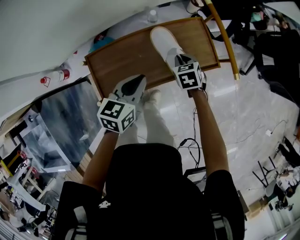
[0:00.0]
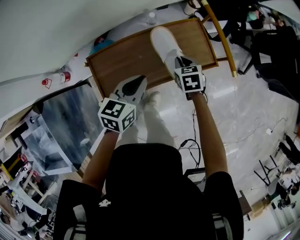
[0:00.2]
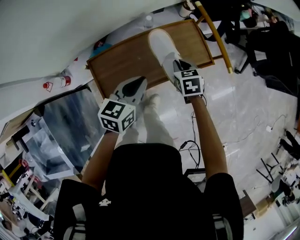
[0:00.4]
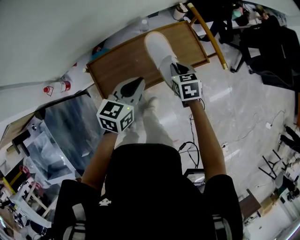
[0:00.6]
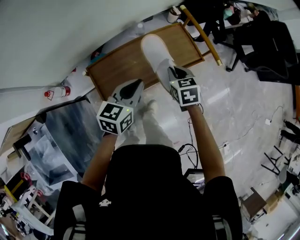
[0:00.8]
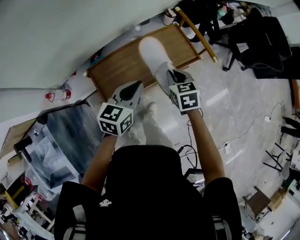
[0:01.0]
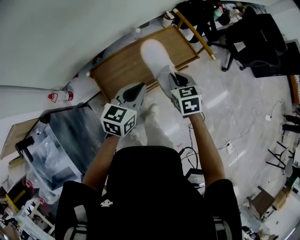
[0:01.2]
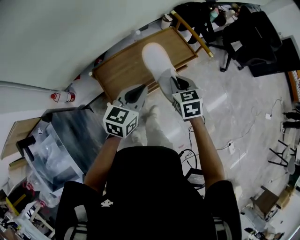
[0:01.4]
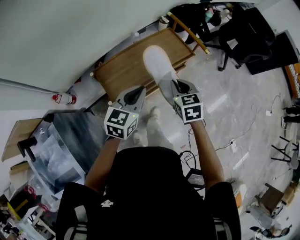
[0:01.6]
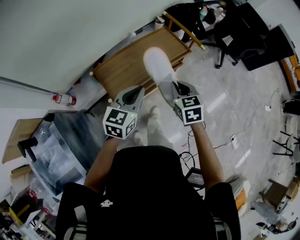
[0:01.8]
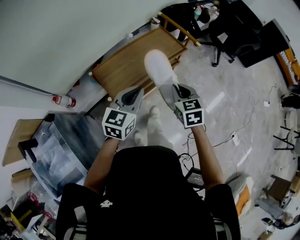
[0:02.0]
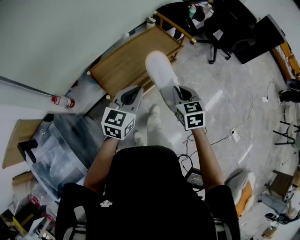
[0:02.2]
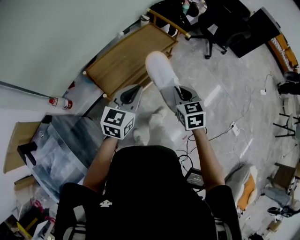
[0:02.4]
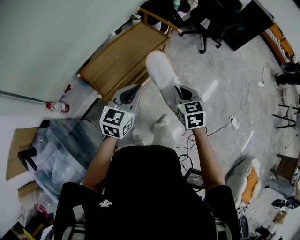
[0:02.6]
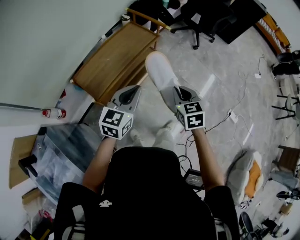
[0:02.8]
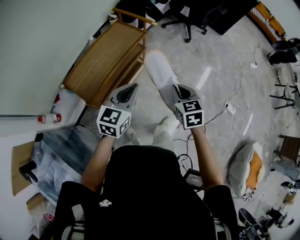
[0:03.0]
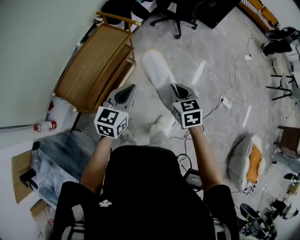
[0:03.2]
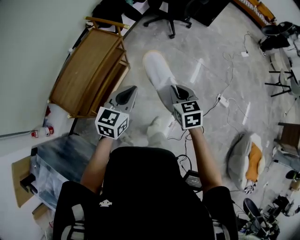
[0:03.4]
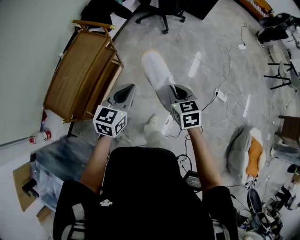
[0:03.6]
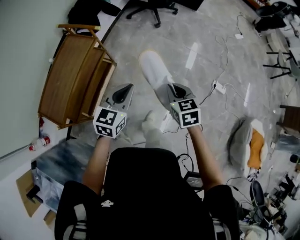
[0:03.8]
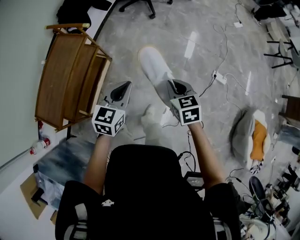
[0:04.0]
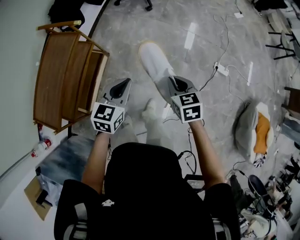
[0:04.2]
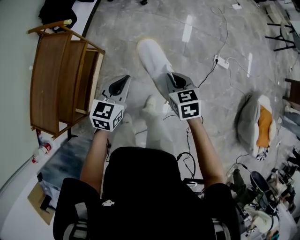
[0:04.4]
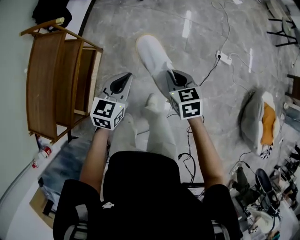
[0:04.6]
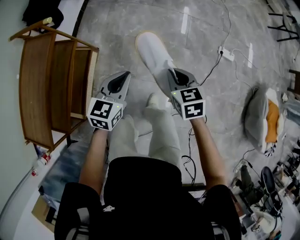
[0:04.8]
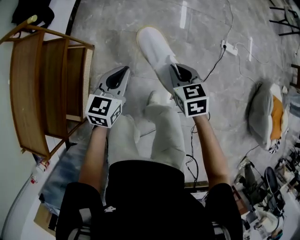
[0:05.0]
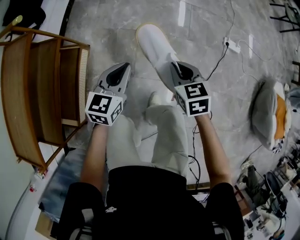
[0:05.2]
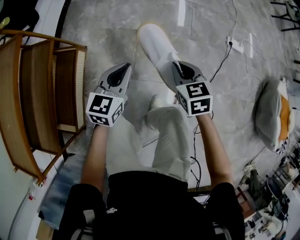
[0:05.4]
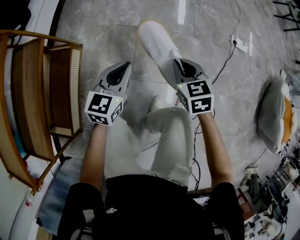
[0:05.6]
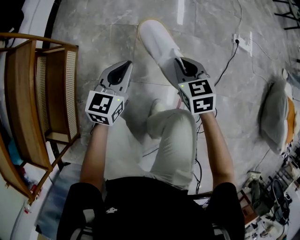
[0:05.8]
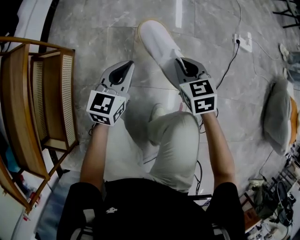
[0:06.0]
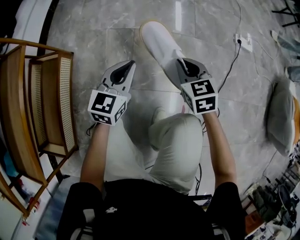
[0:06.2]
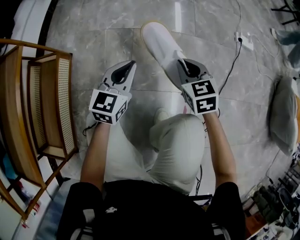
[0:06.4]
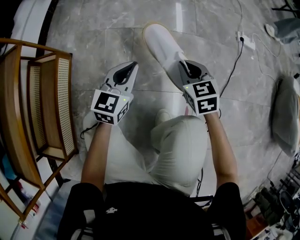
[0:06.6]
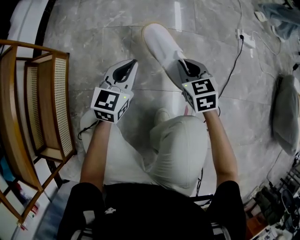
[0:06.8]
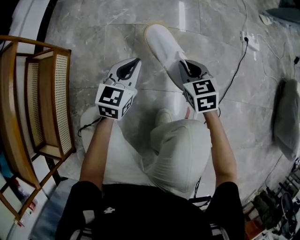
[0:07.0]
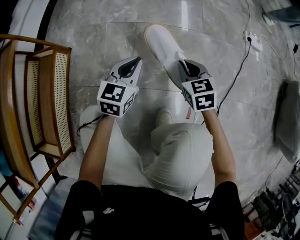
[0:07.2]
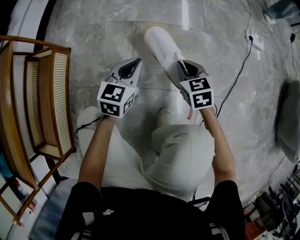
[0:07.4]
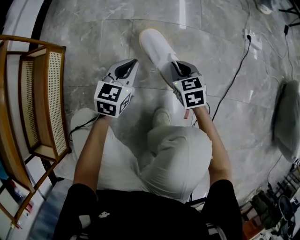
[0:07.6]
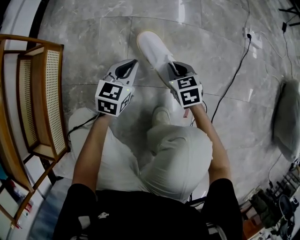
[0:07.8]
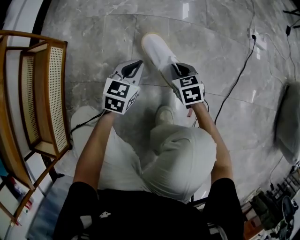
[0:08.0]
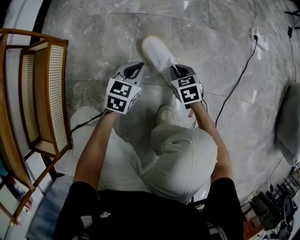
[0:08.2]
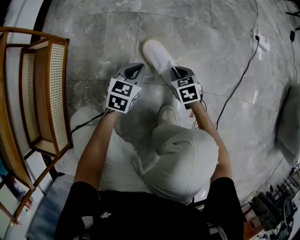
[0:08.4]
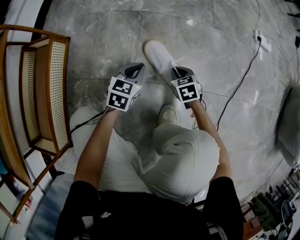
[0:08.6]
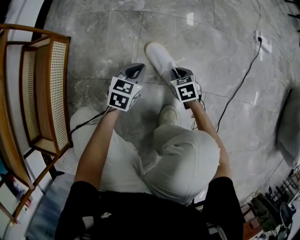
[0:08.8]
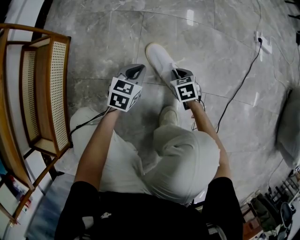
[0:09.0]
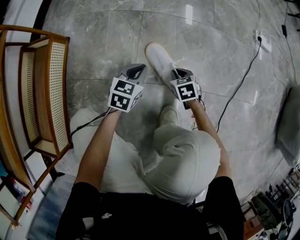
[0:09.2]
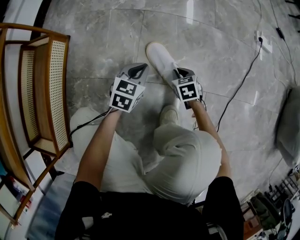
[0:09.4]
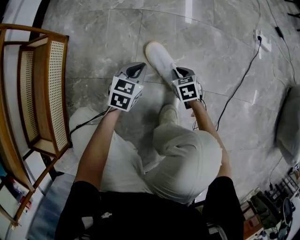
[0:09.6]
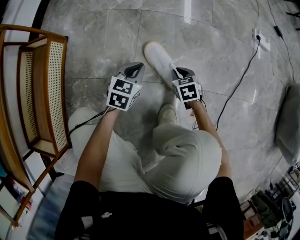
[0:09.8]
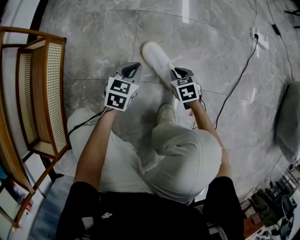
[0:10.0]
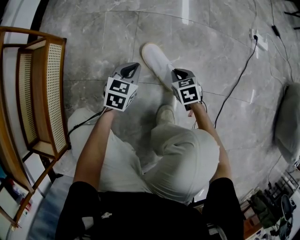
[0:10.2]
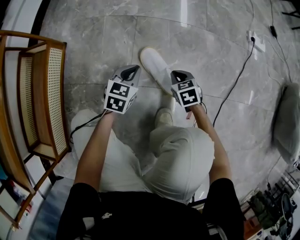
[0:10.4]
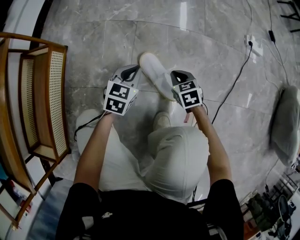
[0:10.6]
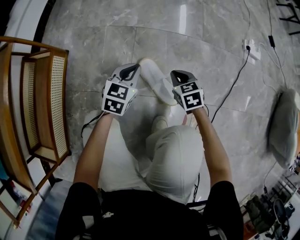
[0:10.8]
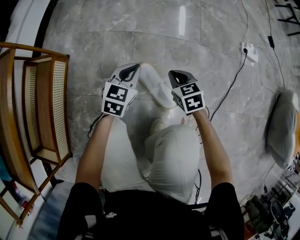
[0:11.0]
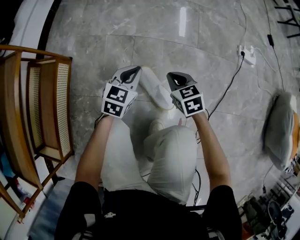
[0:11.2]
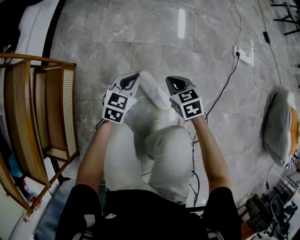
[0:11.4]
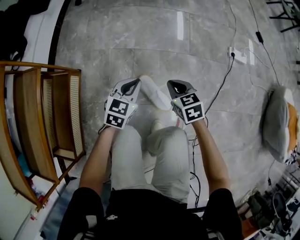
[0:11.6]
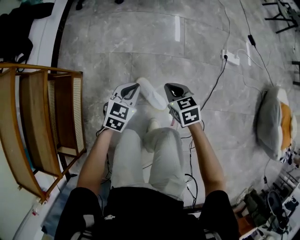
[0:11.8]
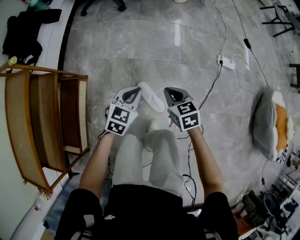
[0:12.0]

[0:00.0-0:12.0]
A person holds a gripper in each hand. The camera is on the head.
0:00.0 to 0:01.6: The grippers both shift backward and upward by approximately 25 cm. The left gripper rotates roughly 20 degrees, while the right gripper changes its angle by approximately 30 degrees.
0:01.6 to 0:03.0: Both grippers travel together to the right and backward, approximately 25 cm. The left gripper swivels roughly 20 degrees. Meanwhile the right gripper swivels approximately 20 degrees.
0:03.0 to 0:04.4: The right gripper is displaced to the right and downward by approximately 30 cm, and changes its angle by roughly 20 degrees; the left gripper moves to the right, downward and forward, some 35 cm, and rotates about 20 degrees.
0:04.4 to 0:06.0: Both grippers travel together downward, roughly 40 cm.
0:06.0 to 0:07.6: The two grippers go roughly 20 cm downward.
0:07.6 to 0:09.0: Both grippers travel together downward, approximately 10 cm.
0:09.0 to 0:10.4: The grippers move only a little.
0:10.4 to 0:12.0: Both grippers move upward, about 40 cm.

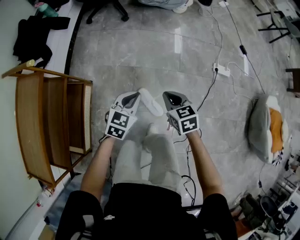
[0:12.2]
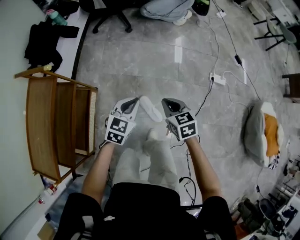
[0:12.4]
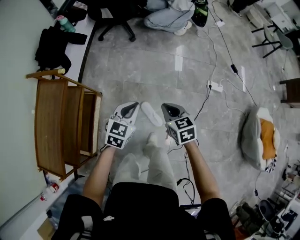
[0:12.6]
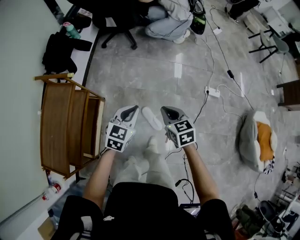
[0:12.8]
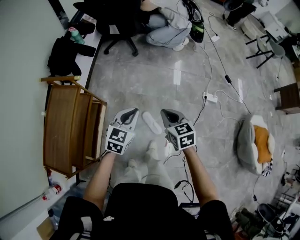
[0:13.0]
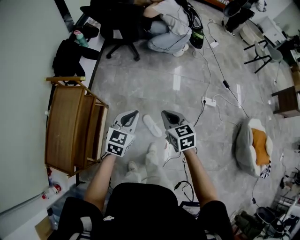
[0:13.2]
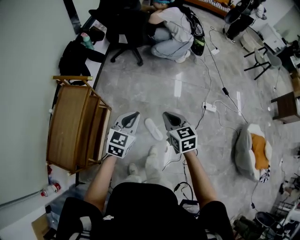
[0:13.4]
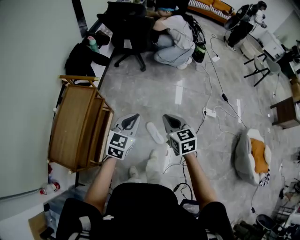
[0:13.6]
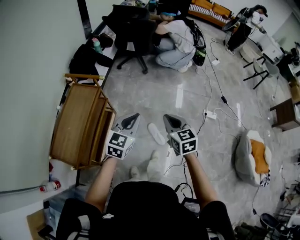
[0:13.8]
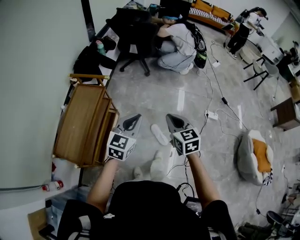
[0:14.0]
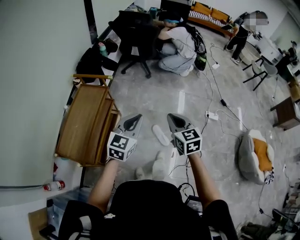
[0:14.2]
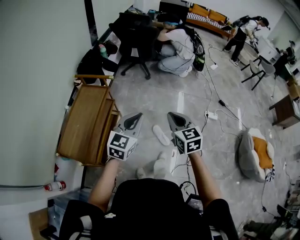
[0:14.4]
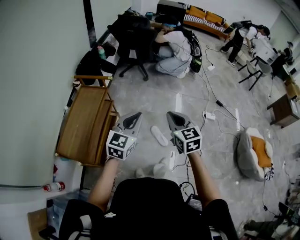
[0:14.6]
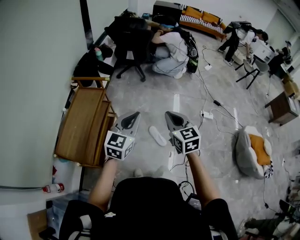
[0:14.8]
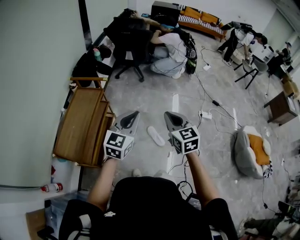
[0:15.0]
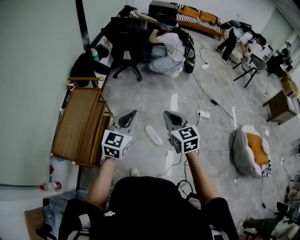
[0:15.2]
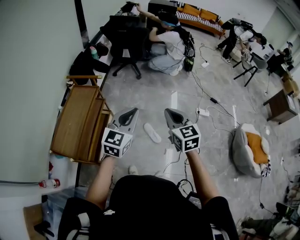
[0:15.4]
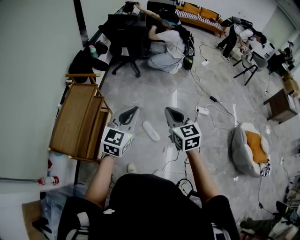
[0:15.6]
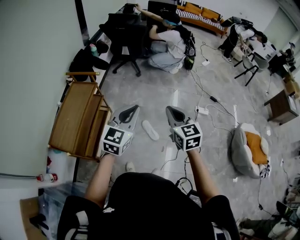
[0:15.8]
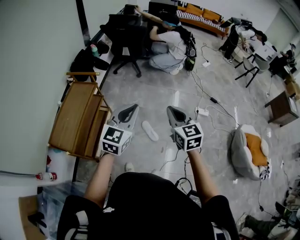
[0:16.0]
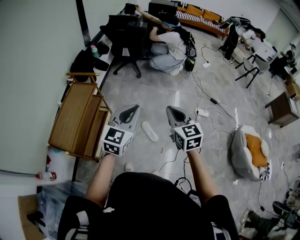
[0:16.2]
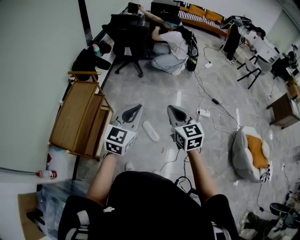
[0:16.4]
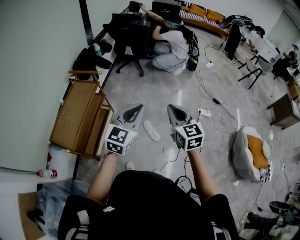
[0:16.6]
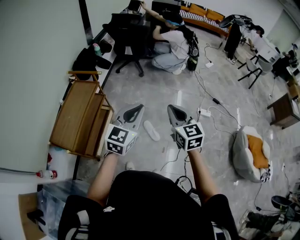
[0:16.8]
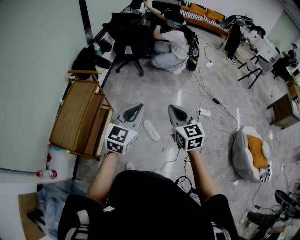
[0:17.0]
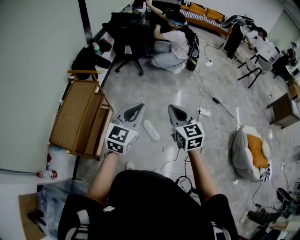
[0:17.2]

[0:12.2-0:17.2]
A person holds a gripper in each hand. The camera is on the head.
0:12.2 to 0:13.8: Both grippers travel together upward, roughly 40 cm. The left gripper turns by approximately 20 degrees.
0:13.8 to 0:15.6: The right gripper goes about 15 cm backward, upward and to the right, while the left gripper moves backward and upward, some 15 cm.
0:15.6 to 0:17.2: The grippers make only small movements.

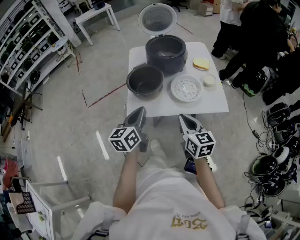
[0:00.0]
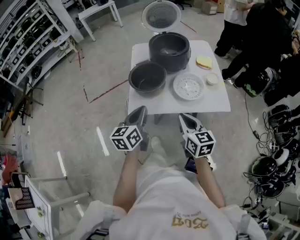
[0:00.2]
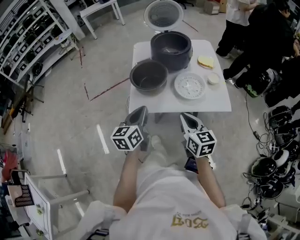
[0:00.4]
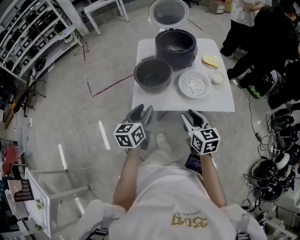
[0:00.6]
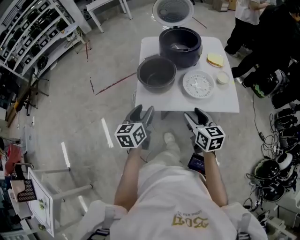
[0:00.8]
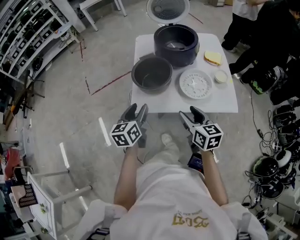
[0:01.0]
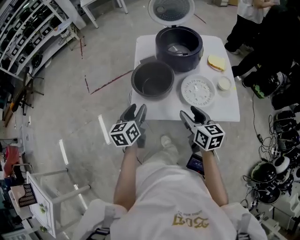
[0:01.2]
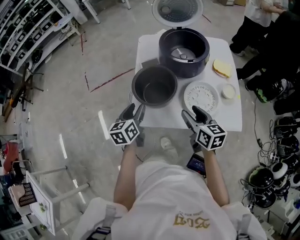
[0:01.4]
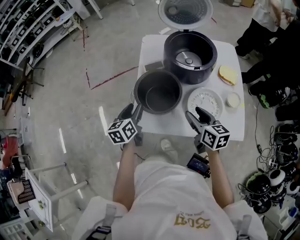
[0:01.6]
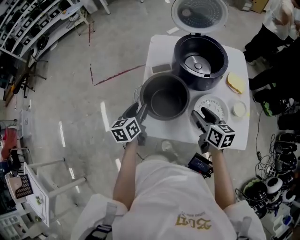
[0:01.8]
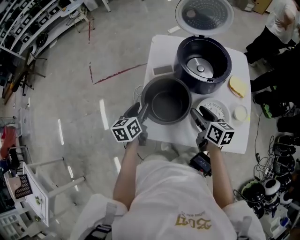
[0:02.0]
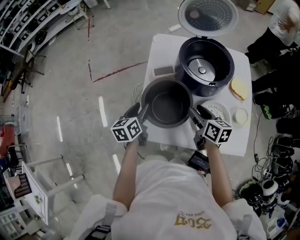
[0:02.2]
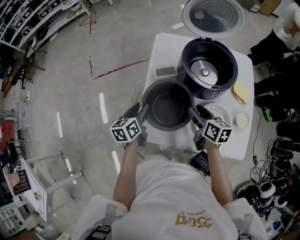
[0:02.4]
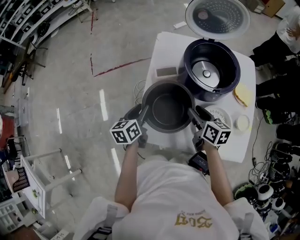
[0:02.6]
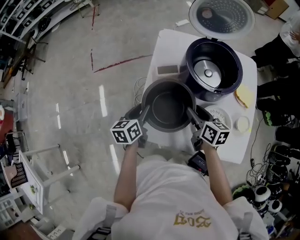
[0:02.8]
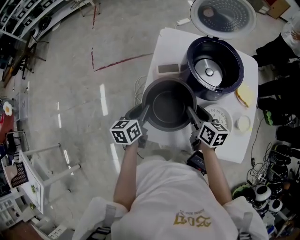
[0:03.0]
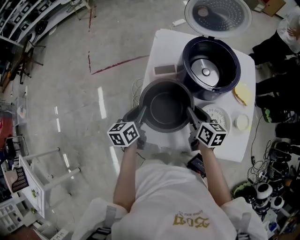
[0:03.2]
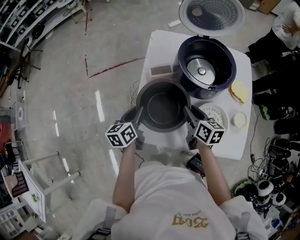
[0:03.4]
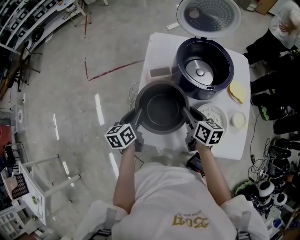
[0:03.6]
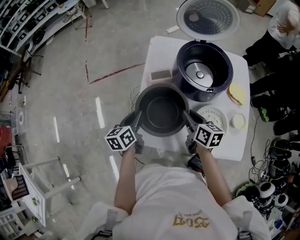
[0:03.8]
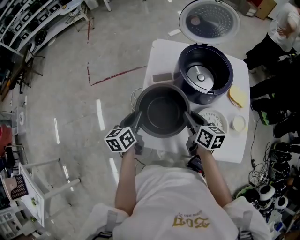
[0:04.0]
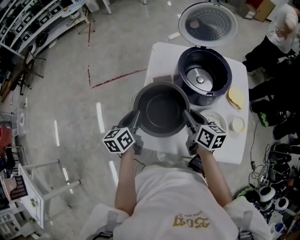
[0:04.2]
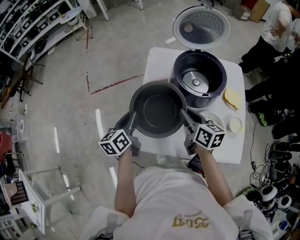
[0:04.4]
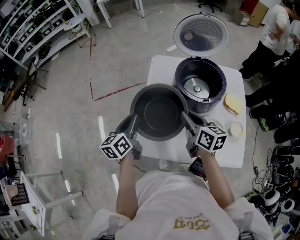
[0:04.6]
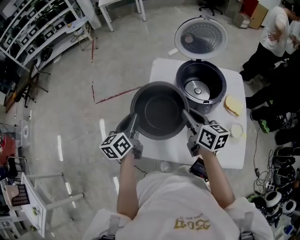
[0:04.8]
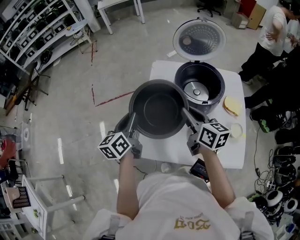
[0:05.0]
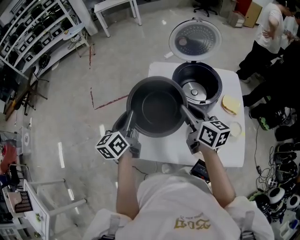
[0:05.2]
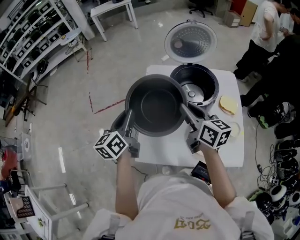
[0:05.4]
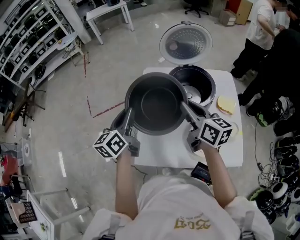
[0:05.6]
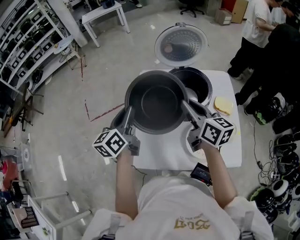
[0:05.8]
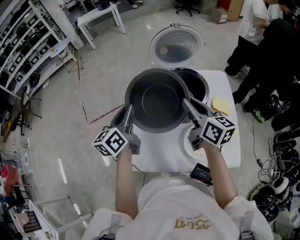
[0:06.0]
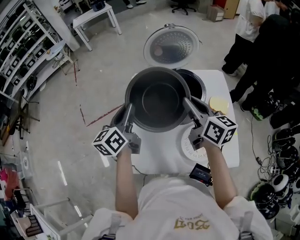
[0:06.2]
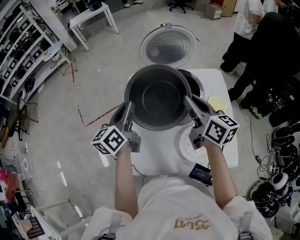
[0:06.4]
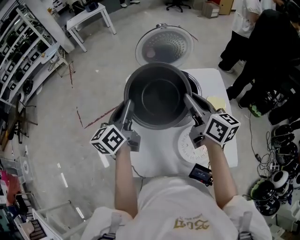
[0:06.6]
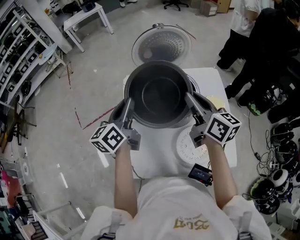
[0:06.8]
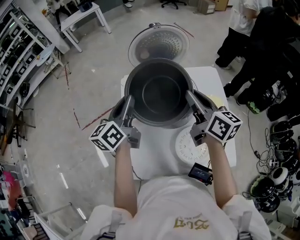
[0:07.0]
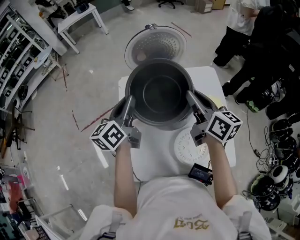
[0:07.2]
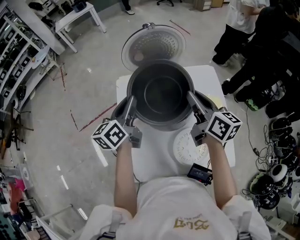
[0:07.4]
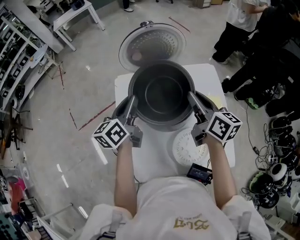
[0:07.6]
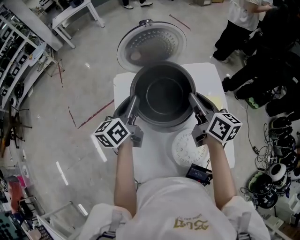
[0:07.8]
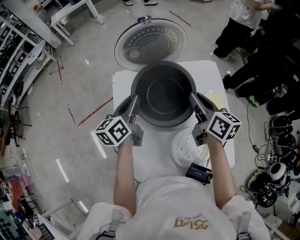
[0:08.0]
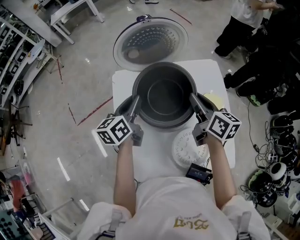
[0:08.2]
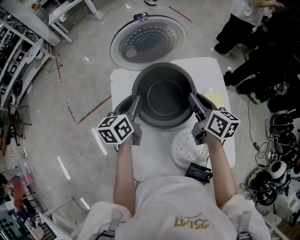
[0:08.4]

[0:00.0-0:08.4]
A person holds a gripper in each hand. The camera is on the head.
0:00.0 to 0:01.4: The right gripper shifts roughly 20 cm forward, and opens up. Meanwhile the left gripper travels forward, downward and to the left by some 20 cm, and opens its fingers.
0:01.4 to 0:02.8: Both grippers move forward and downward, about 15 cm.
0:02.8 to 0:04.2: Both grippers travel together upward, about 5 cm. The right gripper closes.
0:04.2 to 0:05.6: The grippers both shift upward by approximately 15 cm.
0:05.6 to 0:07.0: The two grippers go roughly 15 cm to the right and forward.
0:07.0 to 0:08.4: The right gripper goes roughly 10 cm downward and forward. The left gripper shifts roughly 15 cm downward, forward and to the right.
